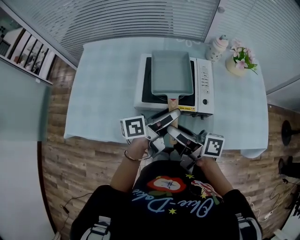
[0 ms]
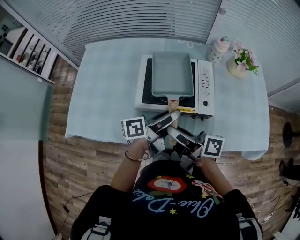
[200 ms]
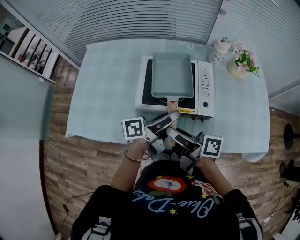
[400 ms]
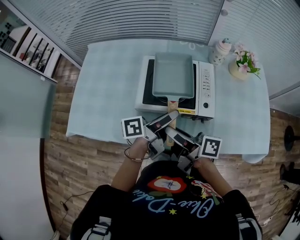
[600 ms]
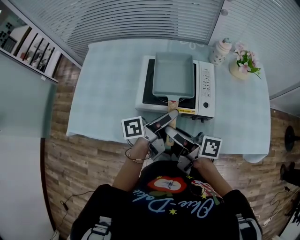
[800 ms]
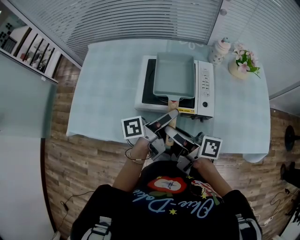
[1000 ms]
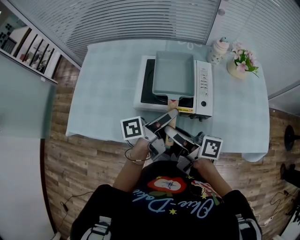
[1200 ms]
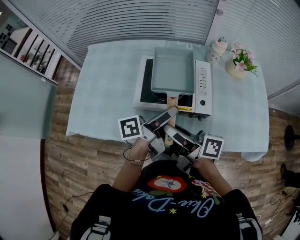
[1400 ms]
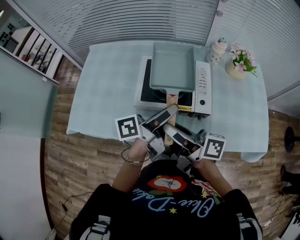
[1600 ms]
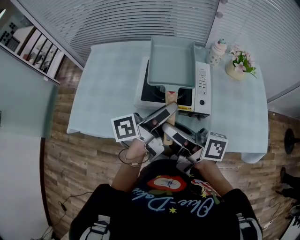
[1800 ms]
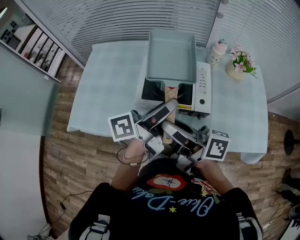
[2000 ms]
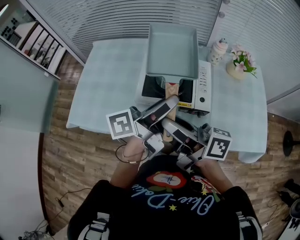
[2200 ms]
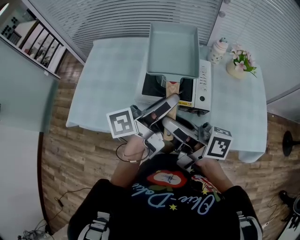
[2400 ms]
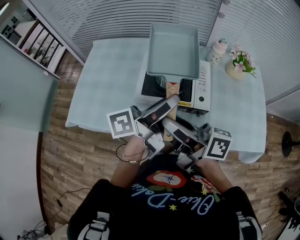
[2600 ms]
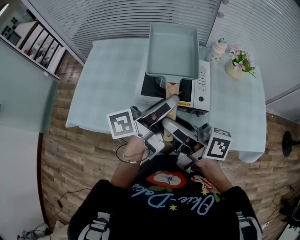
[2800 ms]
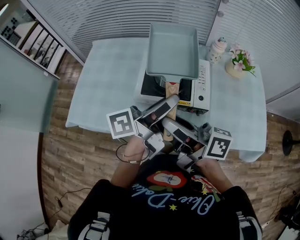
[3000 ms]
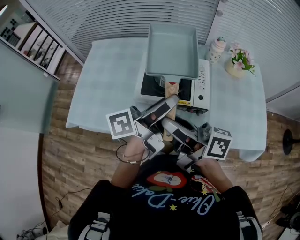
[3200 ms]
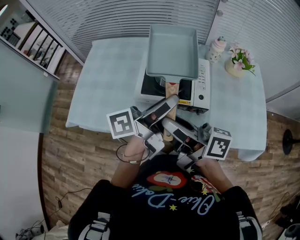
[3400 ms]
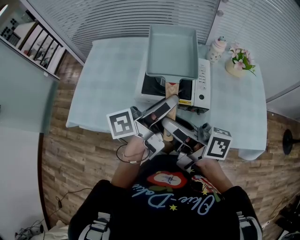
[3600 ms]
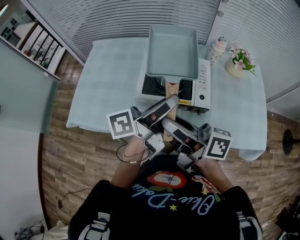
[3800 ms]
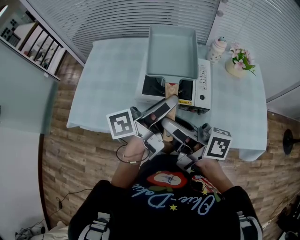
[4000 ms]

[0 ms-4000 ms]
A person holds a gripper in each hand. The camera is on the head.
0 ms to 1400 ms: The left gripper closes.
1400 ms to 2600 ms: The two grippers go approximately 10 cm upward.
2600 ms to 4000 ms: Neither gripper changes place.

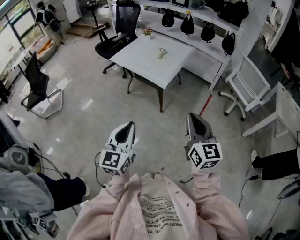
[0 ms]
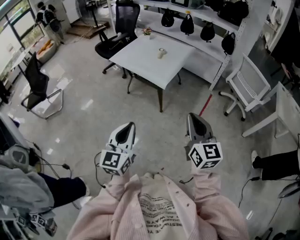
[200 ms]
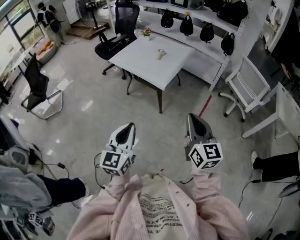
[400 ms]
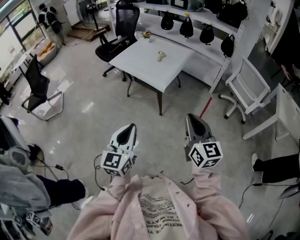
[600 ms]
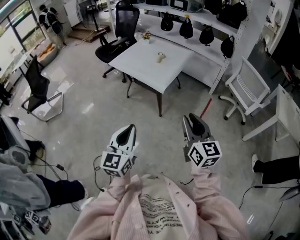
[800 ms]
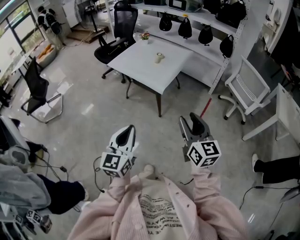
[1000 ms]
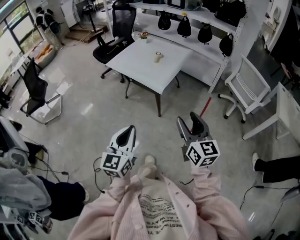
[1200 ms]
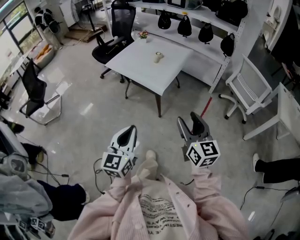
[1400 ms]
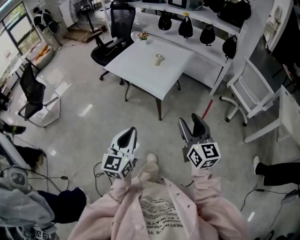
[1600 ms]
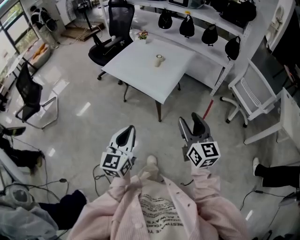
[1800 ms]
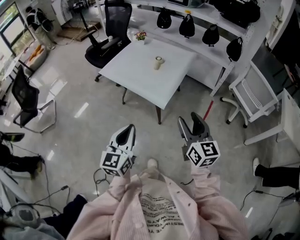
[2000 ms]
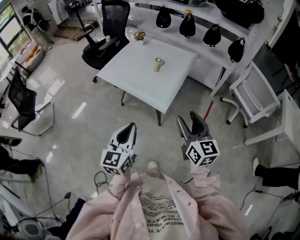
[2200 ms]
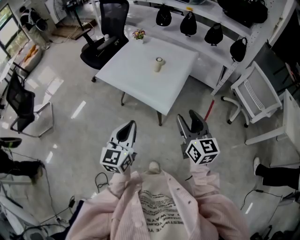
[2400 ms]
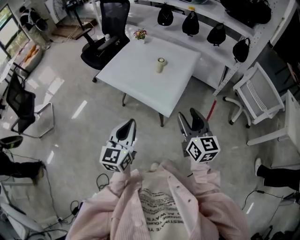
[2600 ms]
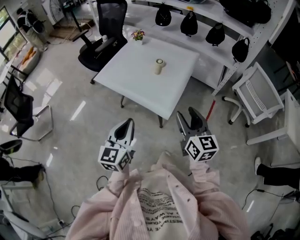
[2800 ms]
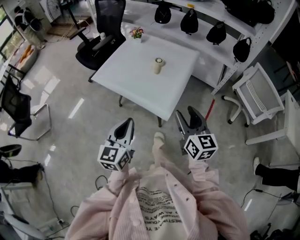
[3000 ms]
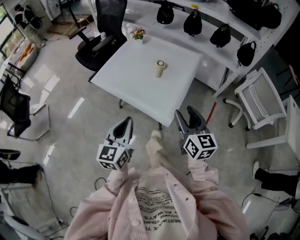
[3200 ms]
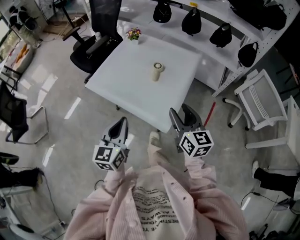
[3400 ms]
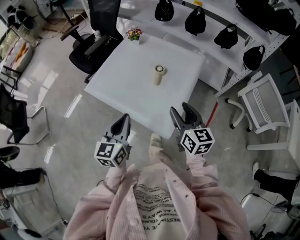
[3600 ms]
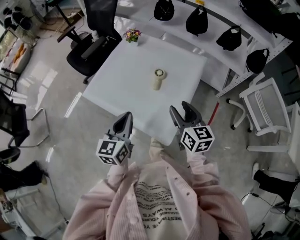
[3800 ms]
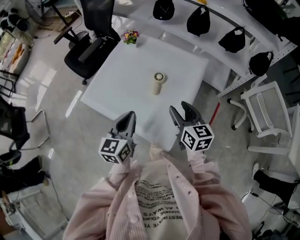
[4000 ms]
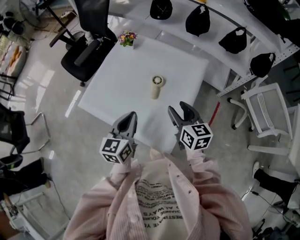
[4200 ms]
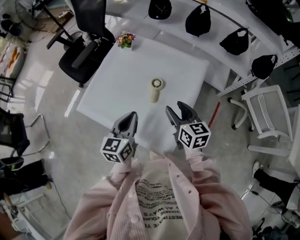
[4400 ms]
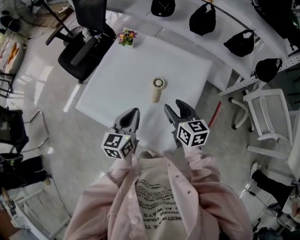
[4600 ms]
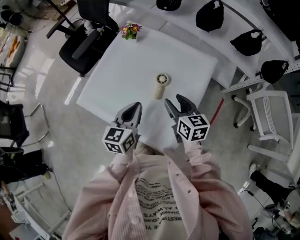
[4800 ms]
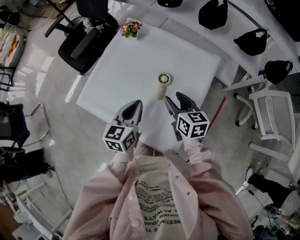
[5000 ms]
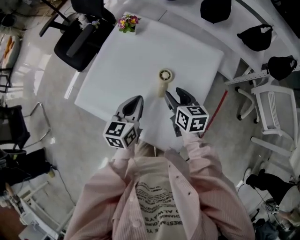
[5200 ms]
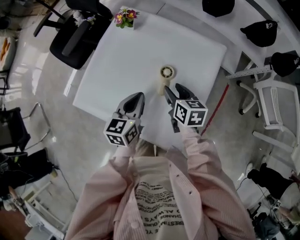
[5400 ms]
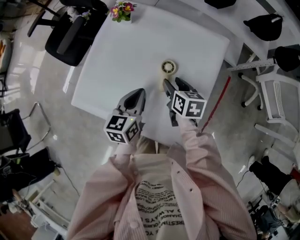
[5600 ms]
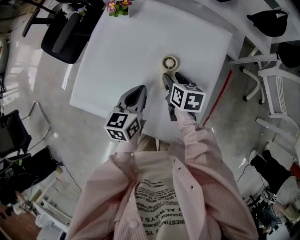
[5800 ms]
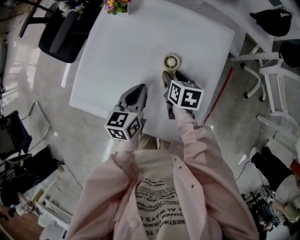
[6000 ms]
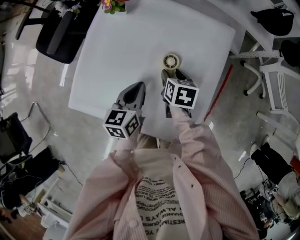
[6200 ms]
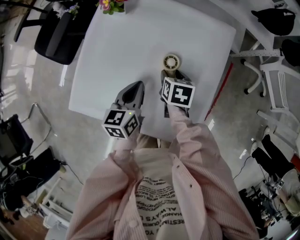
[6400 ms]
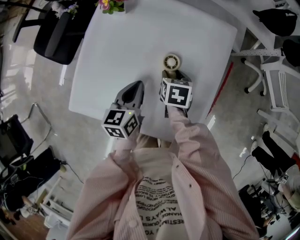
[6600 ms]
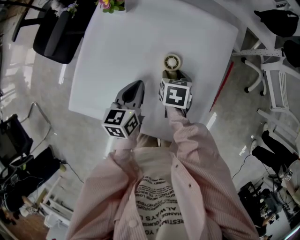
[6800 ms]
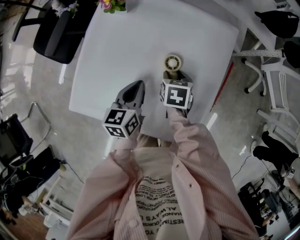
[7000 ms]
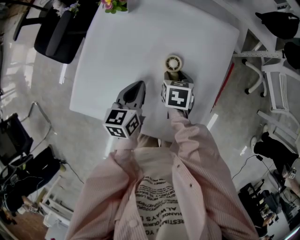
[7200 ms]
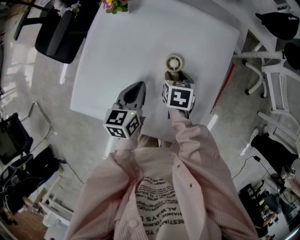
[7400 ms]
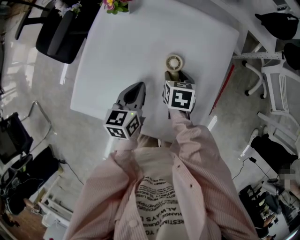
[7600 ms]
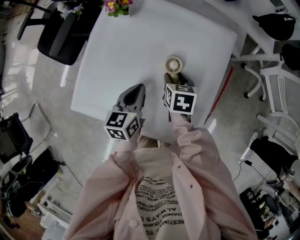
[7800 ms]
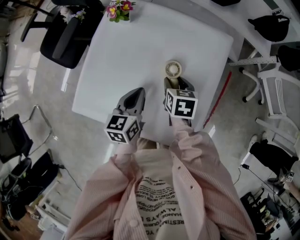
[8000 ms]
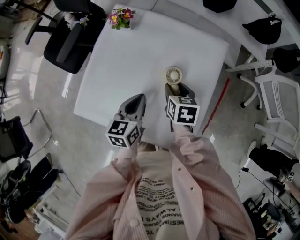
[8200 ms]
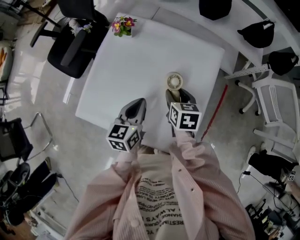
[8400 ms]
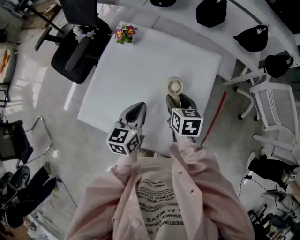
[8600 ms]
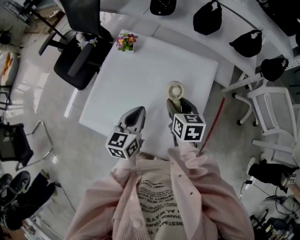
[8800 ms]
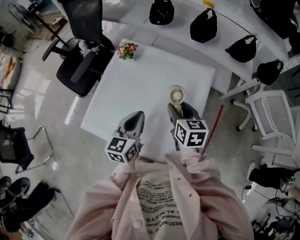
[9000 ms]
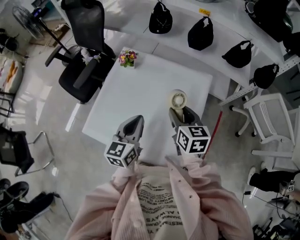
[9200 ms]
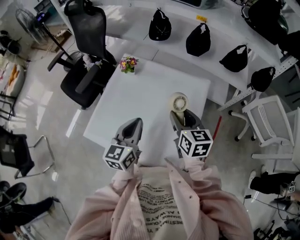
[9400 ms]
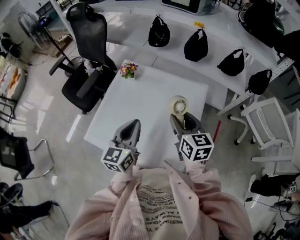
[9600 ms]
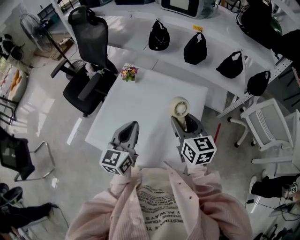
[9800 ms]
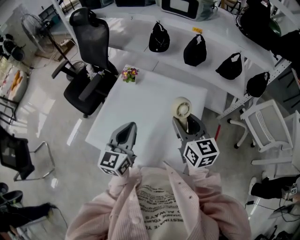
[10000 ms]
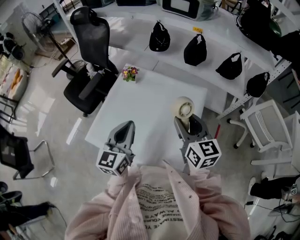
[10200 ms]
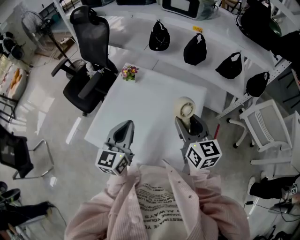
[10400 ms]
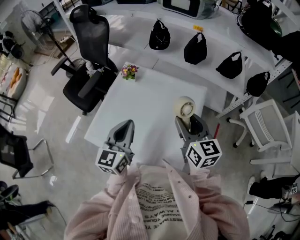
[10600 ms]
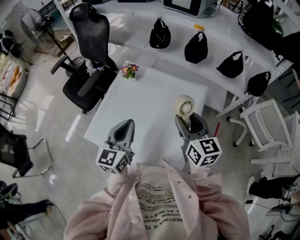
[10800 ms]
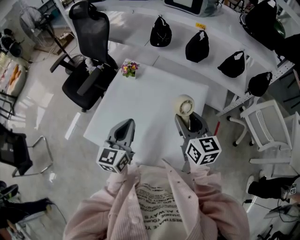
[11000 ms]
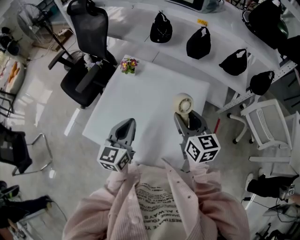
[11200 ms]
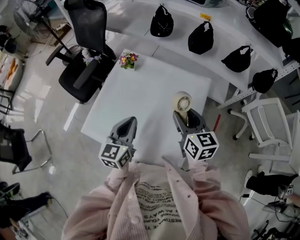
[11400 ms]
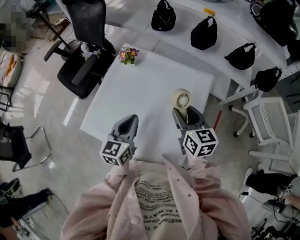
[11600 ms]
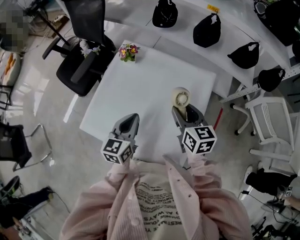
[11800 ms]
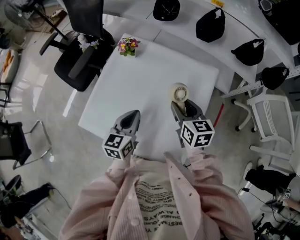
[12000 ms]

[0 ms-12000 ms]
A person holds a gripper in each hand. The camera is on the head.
0 ms to 1600 ms: Both grippers travel together forward, approximately 10 cm. The right gripper opens up.
1600 ms to 3000 ms: The grippers both shift forward by about 25 cm.
3000 ms to 4400 ms: Both grippers move forward, about 35 cm.
4400 ms to 6000 ms: The two grippers go about 20 cm downward and forward. The right gripper turns by some 30 degrees.
6000 ms to 7600 ms: The grippers make only small movements.
7600 ms to 9000 ms: The two grippers go about 15 cm upward. The right gripper rotates roughly 30 degrees.
9000 ms to 10400 ms: Both grippers travel together upward, some 10 cm. The right gripper rotates about 20 degrees.
10400 ms to 12000 ms: The right gripper travels downward and forward by approximately 15 cm. Meanwhile the left gripper travels downward by approximately 15 cm.

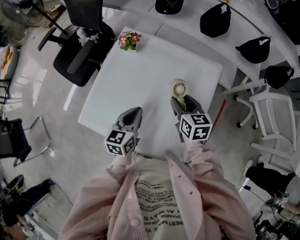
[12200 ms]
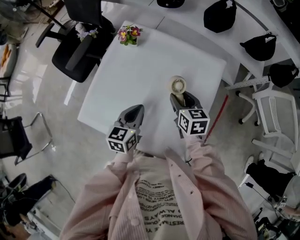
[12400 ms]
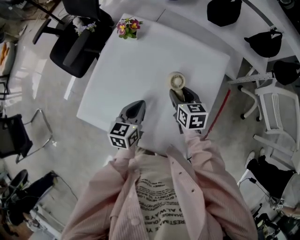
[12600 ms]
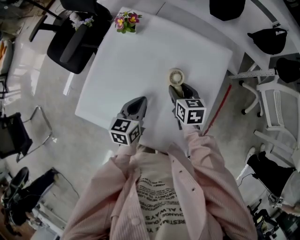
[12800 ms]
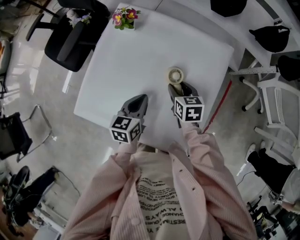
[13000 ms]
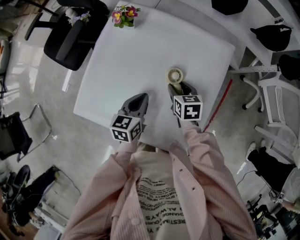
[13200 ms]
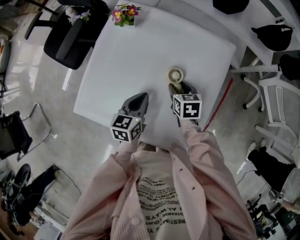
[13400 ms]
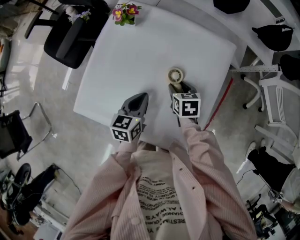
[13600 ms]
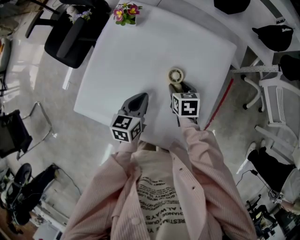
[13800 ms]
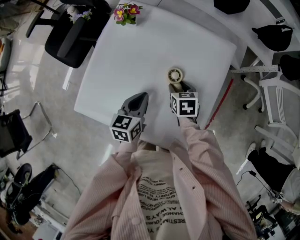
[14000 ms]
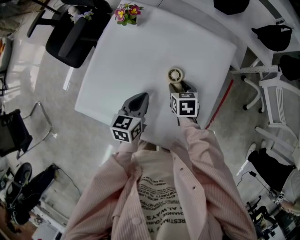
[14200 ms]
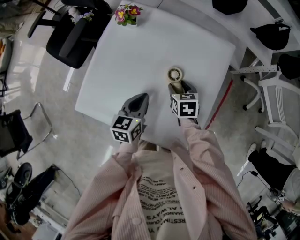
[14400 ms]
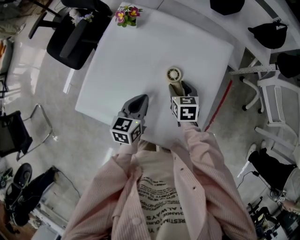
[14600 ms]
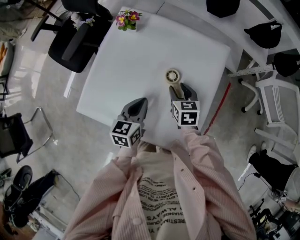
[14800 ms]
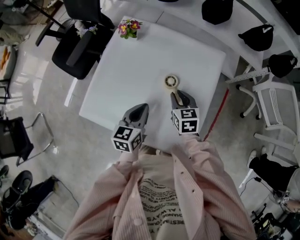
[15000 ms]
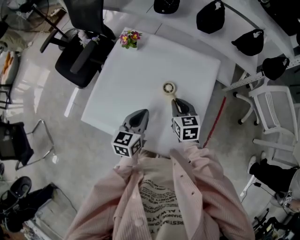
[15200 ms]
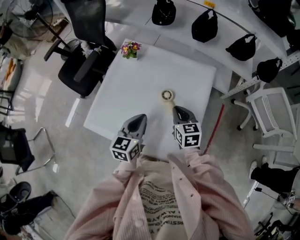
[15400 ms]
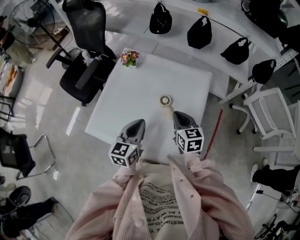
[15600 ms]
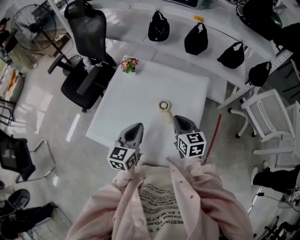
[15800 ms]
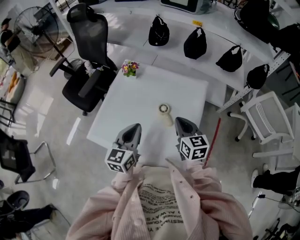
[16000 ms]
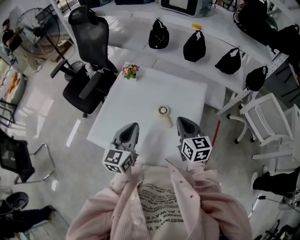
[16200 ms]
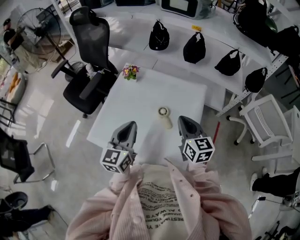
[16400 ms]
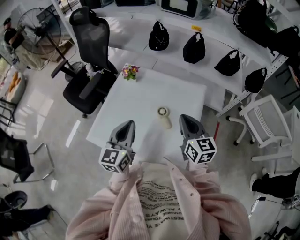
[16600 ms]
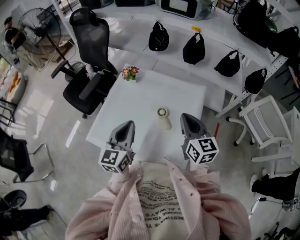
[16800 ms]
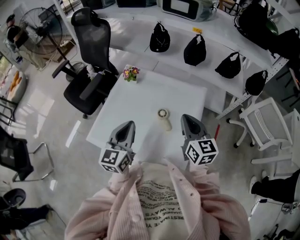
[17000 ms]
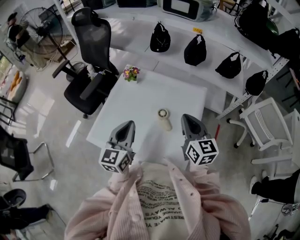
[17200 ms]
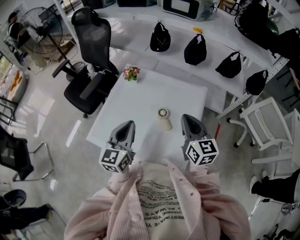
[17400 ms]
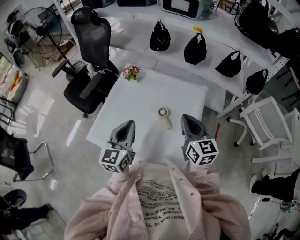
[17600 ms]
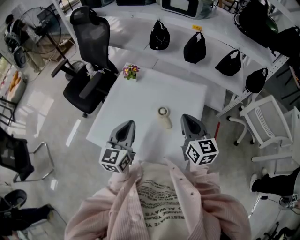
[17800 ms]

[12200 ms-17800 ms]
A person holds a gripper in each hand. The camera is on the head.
12200 ms to 13600 ms: The right gripper moves downward, approximately 15 cm, and turns by some 20 degrees; the left gripper shifts roughly 10 cm downward.
13600 ms to 15000 ms: Both grippers travel together upward, some 5 cm. The right gripper closes its fingers.
15000 ms to 16400 ms: The two grippers go approximately 20 cm upward. The left gripper changes its angle by approximately 20 degrees, while the right gripper swivels some 20 degrees, and closes.
16400 ms to 17800 ms: There are only small adjustments of the grippers.

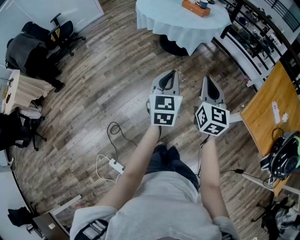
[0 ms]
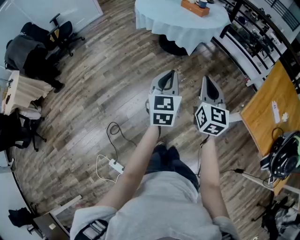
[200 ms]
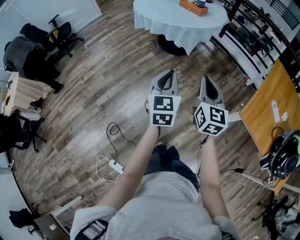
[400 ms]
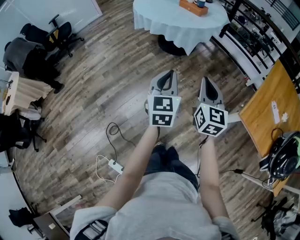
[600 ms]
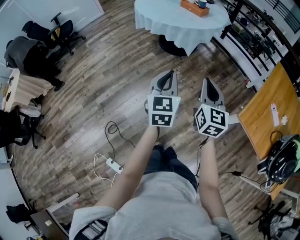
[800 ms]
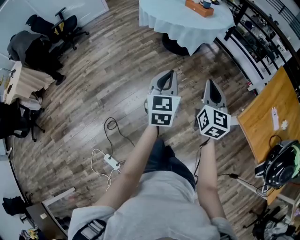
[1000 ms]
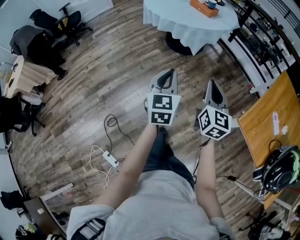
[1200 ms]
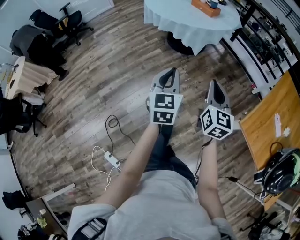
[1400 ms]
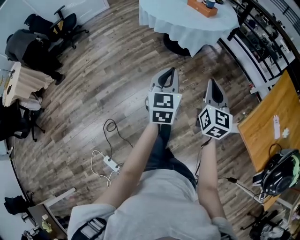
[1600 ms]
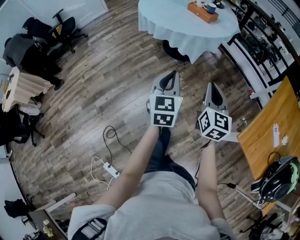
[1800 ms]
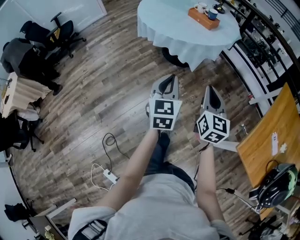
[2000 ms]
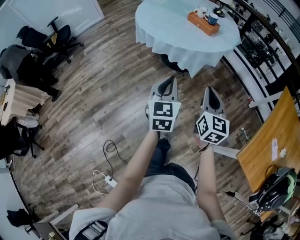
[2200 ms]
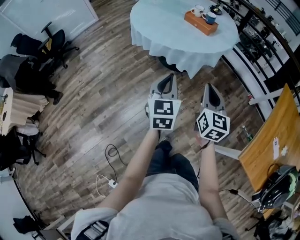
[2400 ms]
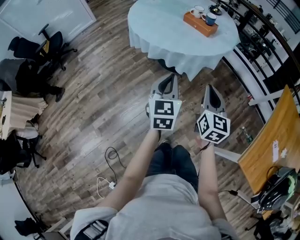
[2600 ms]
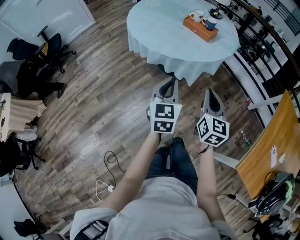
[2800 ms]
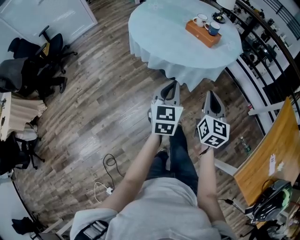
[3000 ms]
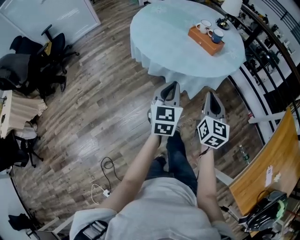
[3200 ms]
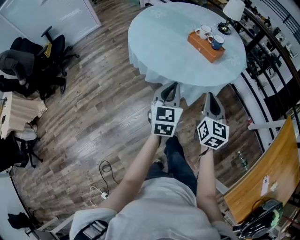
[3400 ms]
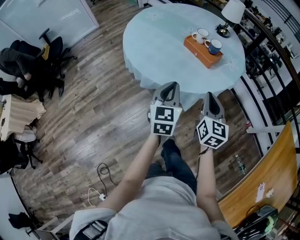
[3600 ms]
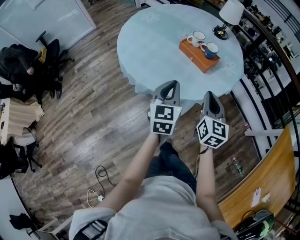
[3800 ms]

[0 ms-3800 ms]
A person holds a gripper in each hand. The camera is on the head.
0 ms to 1200 ms: The right gripper moves to the right, some 5 cm.
1200 ms to 2600 ms: Both grippers travel together forward, approximately 30 cm.
2600 ms to 3800 ms: Both grippers travel together forward, approximately 30 cm.
